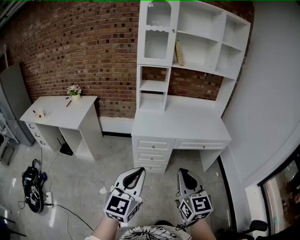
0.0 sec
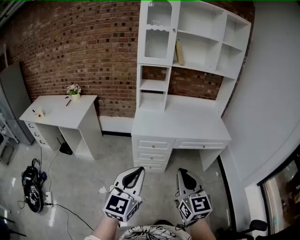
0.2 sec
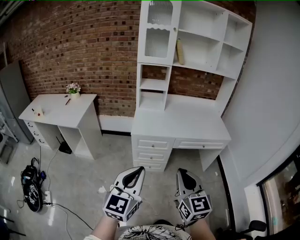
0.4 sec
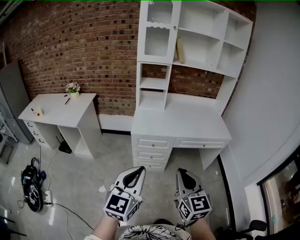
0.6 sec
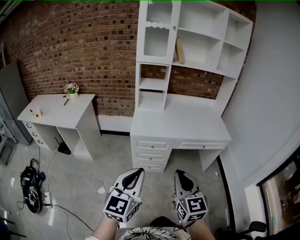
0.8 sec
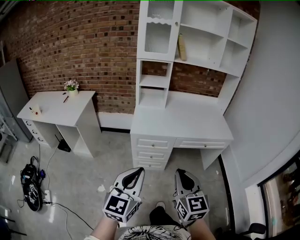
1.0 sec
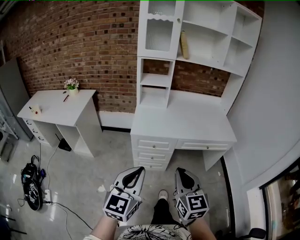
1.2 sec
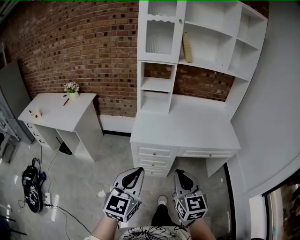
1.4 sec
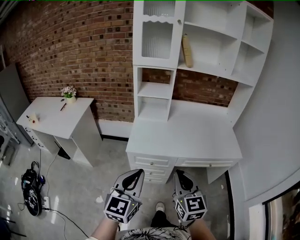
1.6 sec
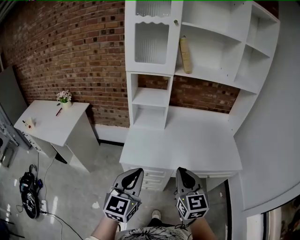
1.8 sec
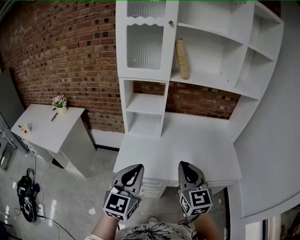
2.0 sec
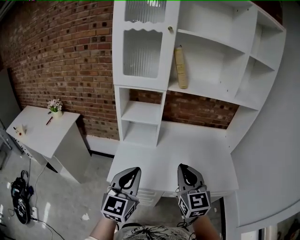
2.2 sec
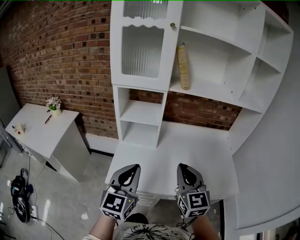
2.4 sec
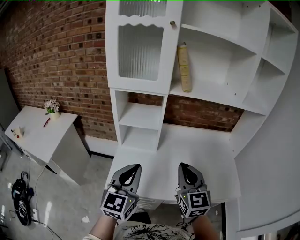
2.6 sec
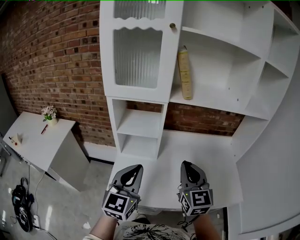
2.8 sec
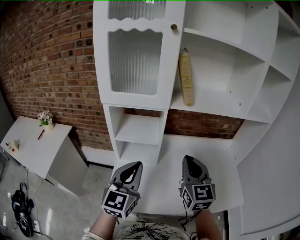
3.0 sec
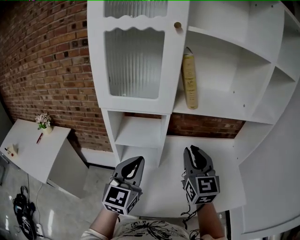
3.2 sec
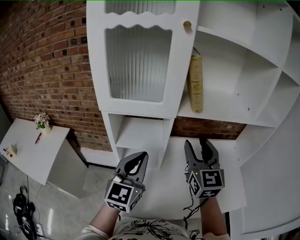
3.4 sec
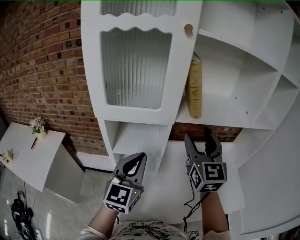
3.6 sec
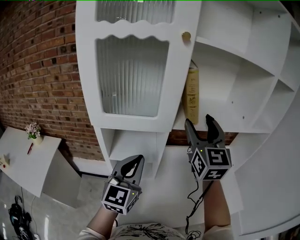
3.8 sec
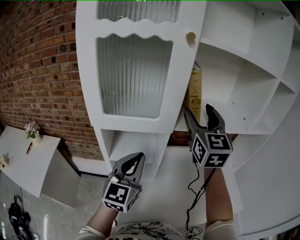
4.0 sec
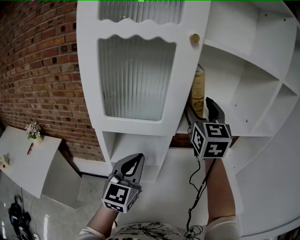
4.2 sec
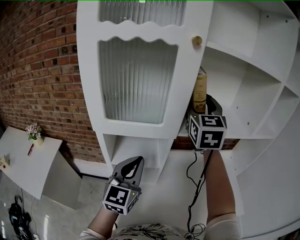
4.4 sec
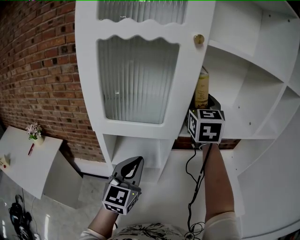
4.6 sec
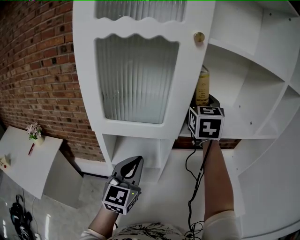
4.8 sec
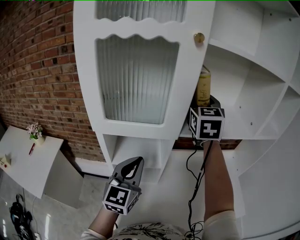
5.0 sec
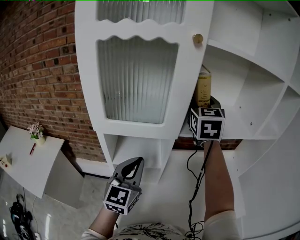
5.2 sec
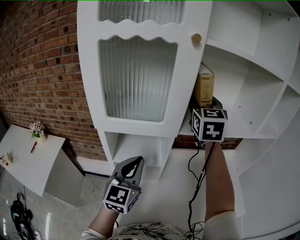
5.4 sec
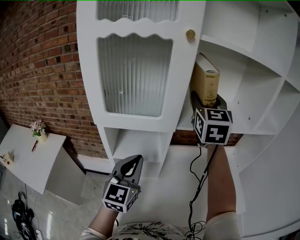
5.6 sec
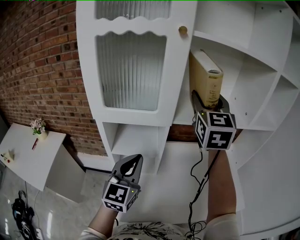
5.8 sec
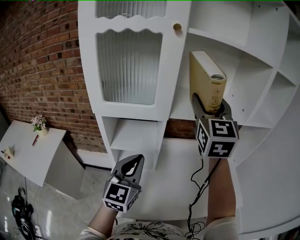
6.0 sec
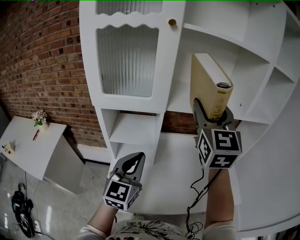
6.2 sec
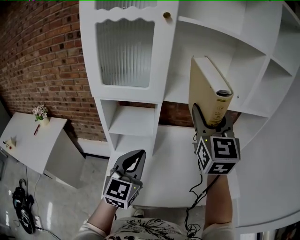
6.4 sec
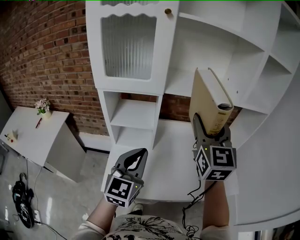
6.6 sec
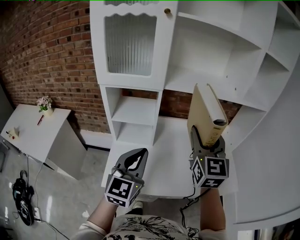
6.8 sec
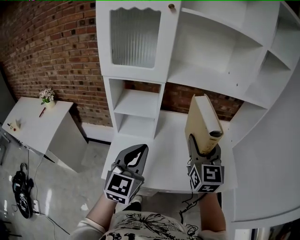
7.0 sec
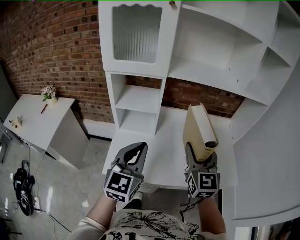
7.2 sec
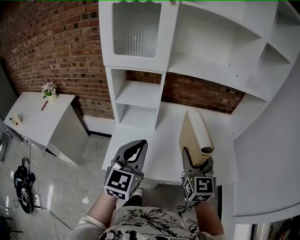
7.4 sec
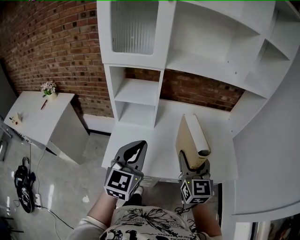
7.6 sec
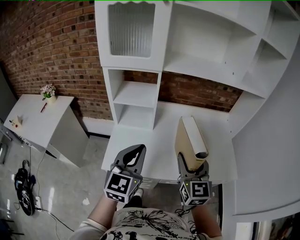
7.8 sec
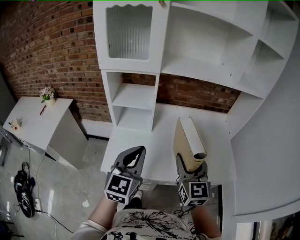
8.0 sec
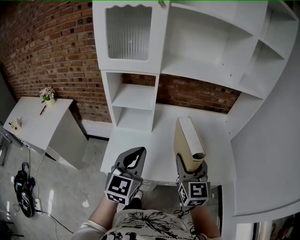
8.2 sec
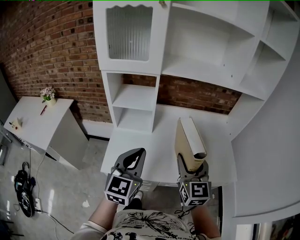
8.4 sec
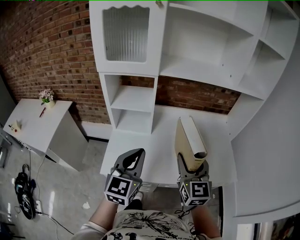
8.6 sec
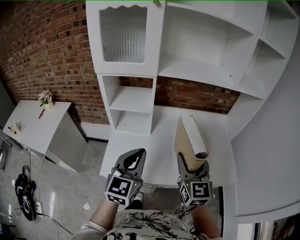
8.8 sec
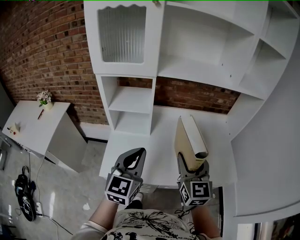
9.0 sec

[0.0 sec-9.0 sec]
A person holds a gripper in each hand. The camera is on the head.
0.0 sec to 1.6 sec: Both grippers move forward, roughly 25 cm.
1.6 sec to 3.0 sec: The pair of grippers is taken forward, roughly 50 cm.
3.0 sec to 4.4 sec: The left gripper moves forward, some 15 cm. The right gripper goes about 35 cm forward and upward, and opens up.
4.4 sec to 6.0 sec: The right gripper heads backward and to the right, covering about 10 cm. Meanwhile the left gripper heads backward, covering about 5 cm.
6.0 sec to 7.6 sec: The left gripper heads backward, covering roughly 20 cm, while the right gripper travels backward and downward by about 40 cm.
7.6 sec to 9.0 sec: There are only small adjustments of the grippers.

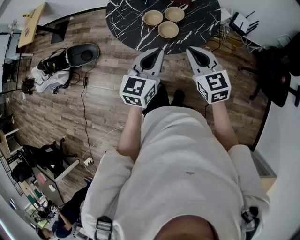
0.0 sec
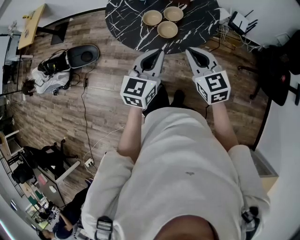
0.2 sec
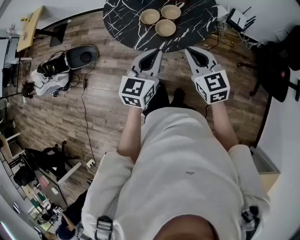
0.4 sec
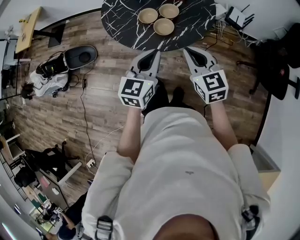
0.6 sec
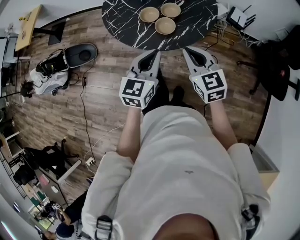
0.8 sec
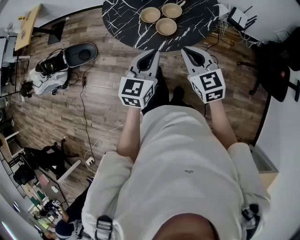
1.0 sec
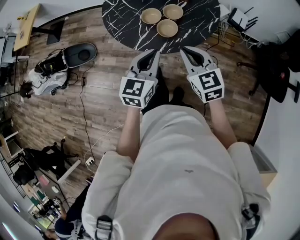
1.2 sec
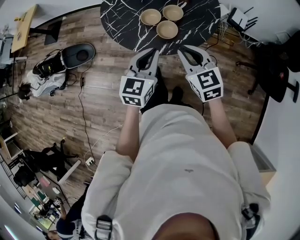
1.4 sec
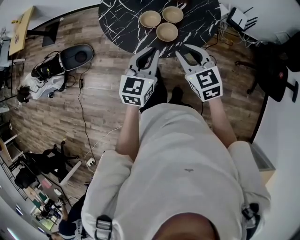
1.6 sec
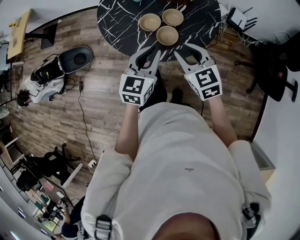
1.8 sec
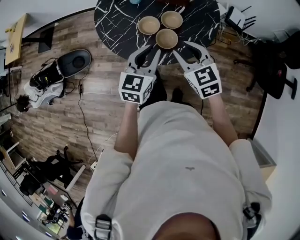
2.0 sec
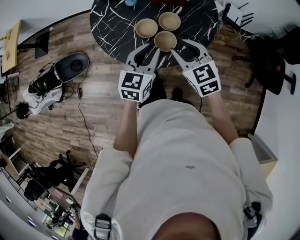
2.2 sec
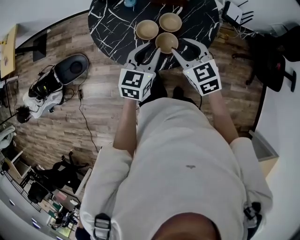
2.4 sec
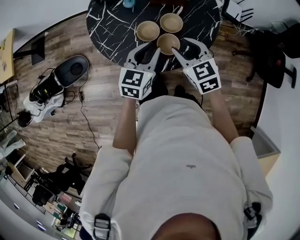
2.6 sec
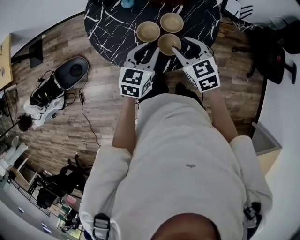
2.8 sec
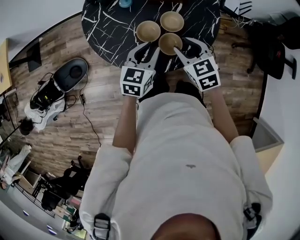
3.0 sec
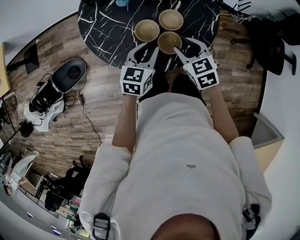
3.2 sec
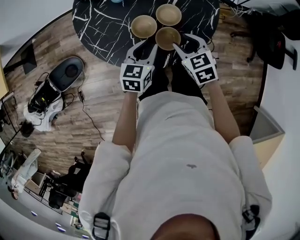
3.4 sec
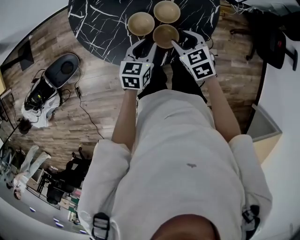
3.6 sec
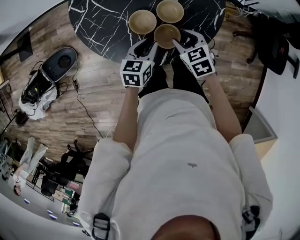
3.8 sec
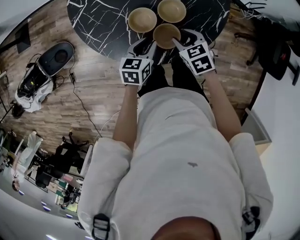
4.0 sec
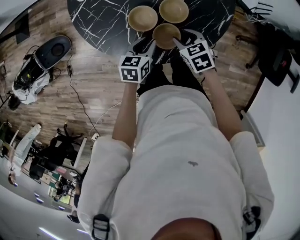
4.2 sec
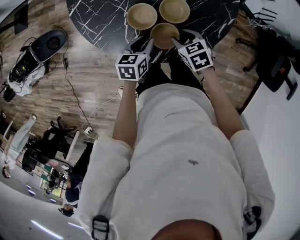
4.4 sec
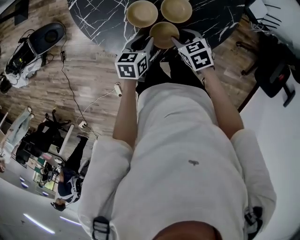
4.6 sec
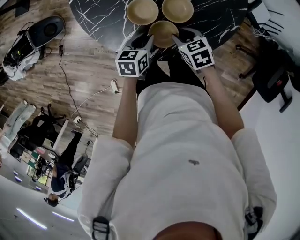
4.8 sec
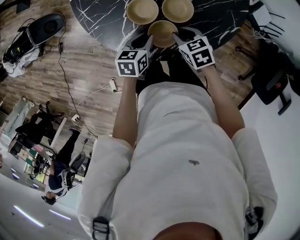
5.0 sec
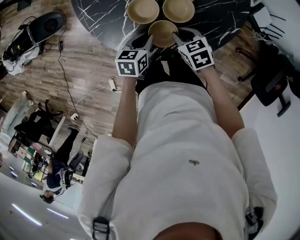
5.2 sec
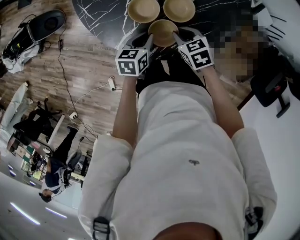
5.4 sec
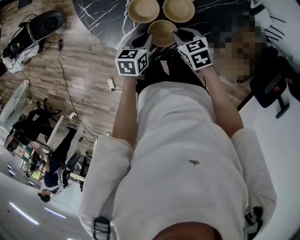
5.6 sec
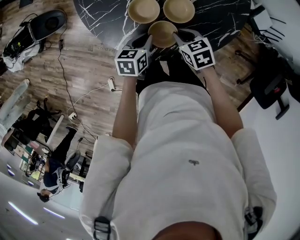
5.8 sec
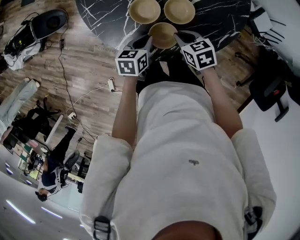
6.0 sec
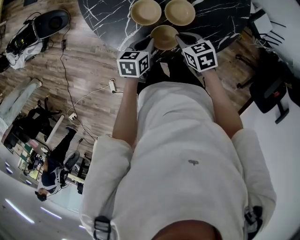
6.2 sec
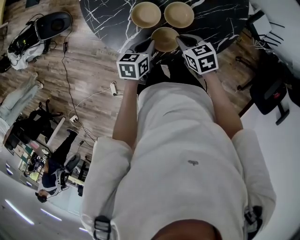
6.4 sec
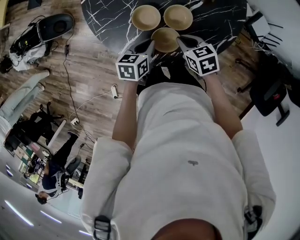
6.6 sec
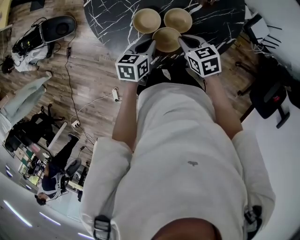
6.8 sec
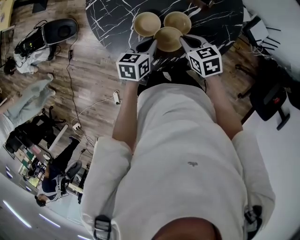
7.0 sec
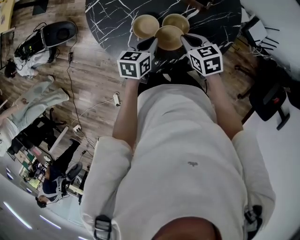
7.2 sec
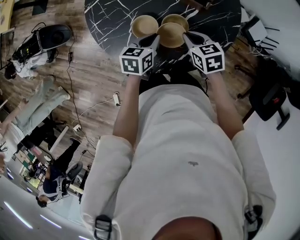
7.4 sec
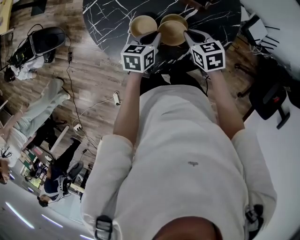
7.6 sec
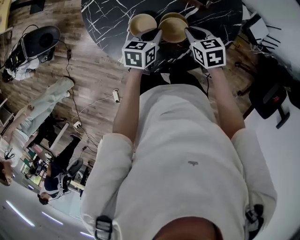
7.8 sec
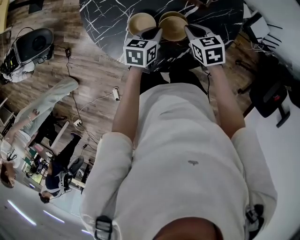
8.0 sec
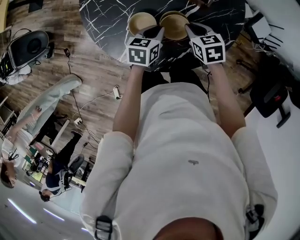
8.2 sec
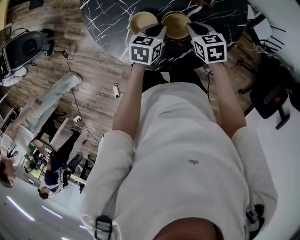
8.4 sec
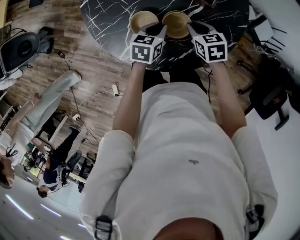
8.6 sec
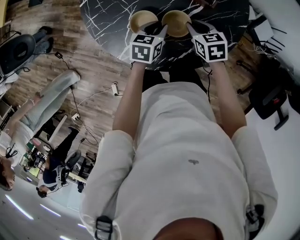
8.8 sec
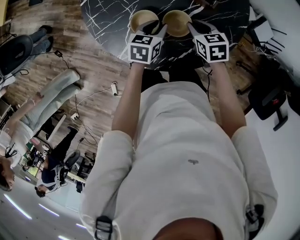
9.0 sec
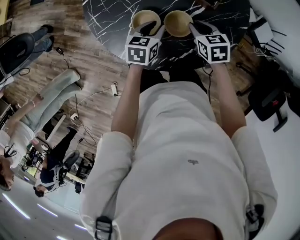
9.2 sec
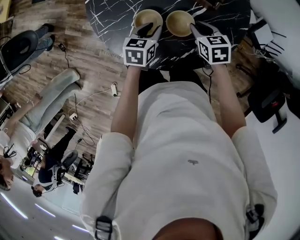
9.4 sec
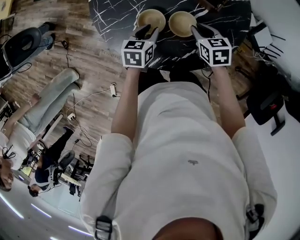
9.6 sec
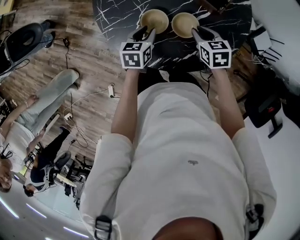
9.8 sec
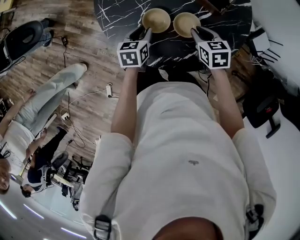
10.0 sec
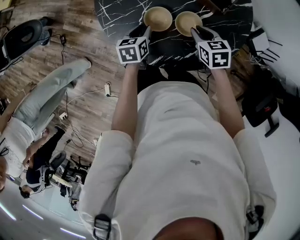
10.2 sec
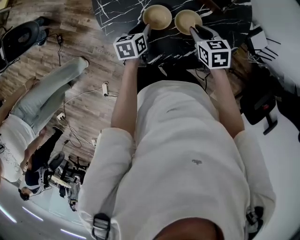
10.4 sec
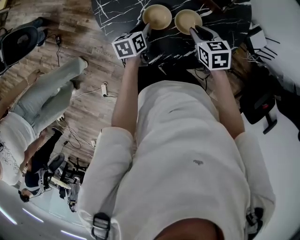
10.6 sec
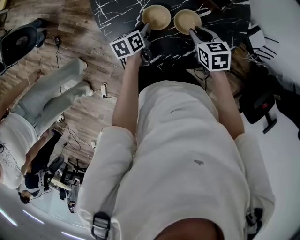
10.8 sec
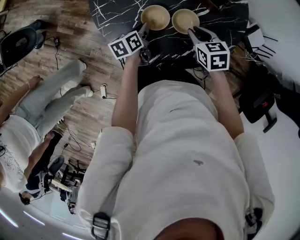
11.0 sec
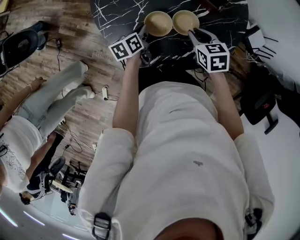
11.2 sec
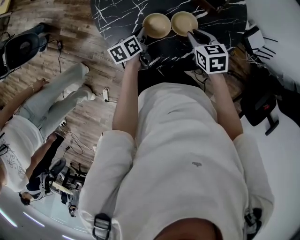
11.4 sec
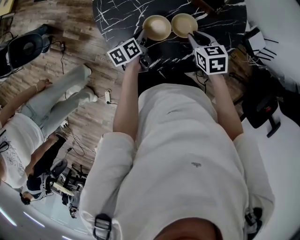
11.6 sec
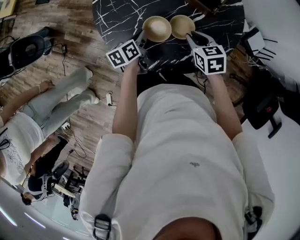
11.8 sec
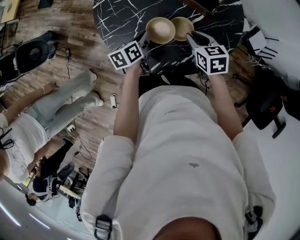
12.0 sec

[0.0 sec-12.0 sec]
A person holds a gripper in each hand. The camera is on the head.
0.0 sec to 1.6 sec: The right gripper moves about 5 cm, and opens. The left gripper heads forward, covering roughly 5 cm.
1.6 sec to 3.0 sec: The two grippers go approximately 15 cm forward and downward. The left gripper opens its fingers.
3.0 sec to 4.4 sec: The two grippers go some 15 cm downward. The right gripper turns by approximately 30 degrees. Meanwhile the left gripper changes its angle by some 30 degrees.
4.4 sec to 6.0 sec: The right gripper closes.
6.0 sec to 7.6 sec: Both grippers travel together forward, upward and to the right, roughly 10 cm.
7.6 sec to 9.0 sec: The grippers move only a little.
9.0 sec to 10.4 sec: The right gripper ends up approximately 5 cm from where it was. The left gripper shifts roughly 10 cm to the left, and changes its angle by roughly 20 degrees.
10.4 sec to 12.0 sec: The left gripper is displaced upward by approximately 5 cm, and closes.

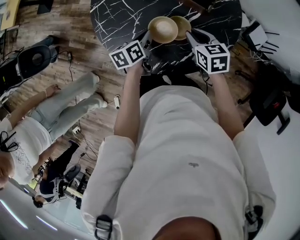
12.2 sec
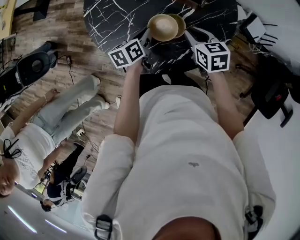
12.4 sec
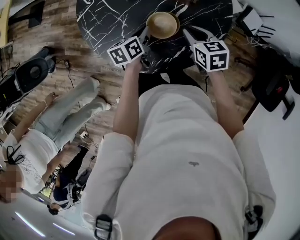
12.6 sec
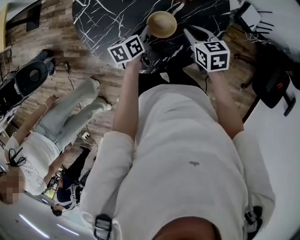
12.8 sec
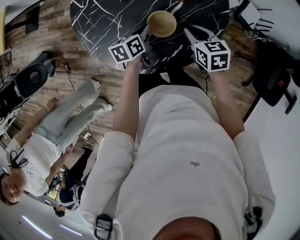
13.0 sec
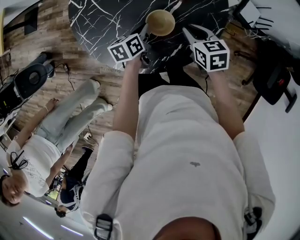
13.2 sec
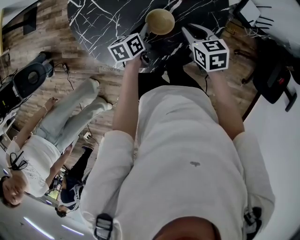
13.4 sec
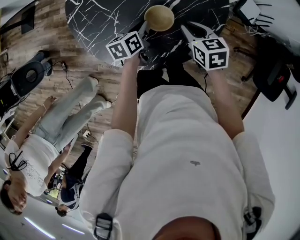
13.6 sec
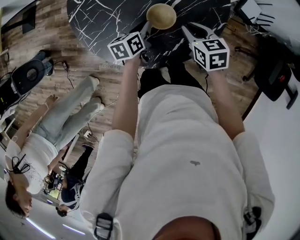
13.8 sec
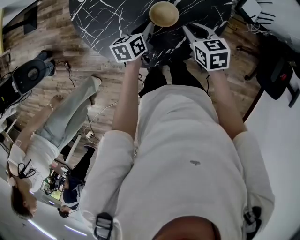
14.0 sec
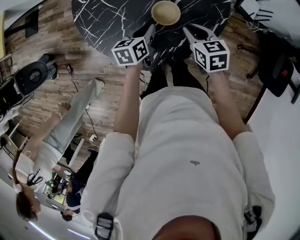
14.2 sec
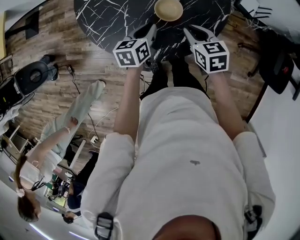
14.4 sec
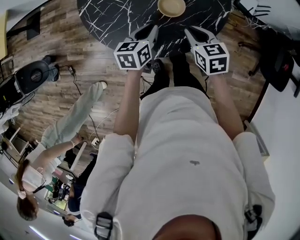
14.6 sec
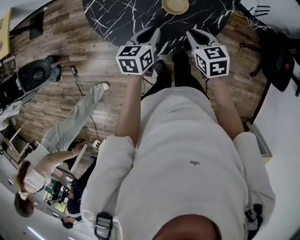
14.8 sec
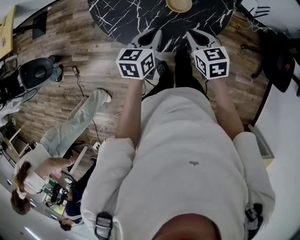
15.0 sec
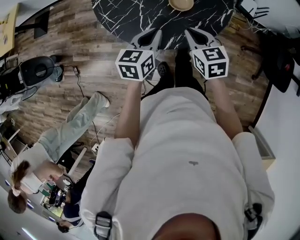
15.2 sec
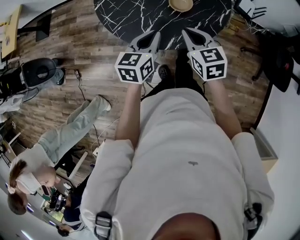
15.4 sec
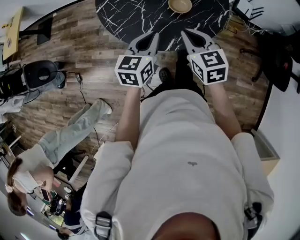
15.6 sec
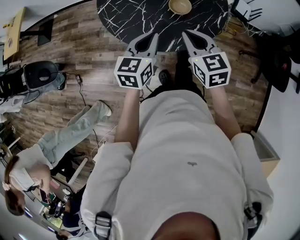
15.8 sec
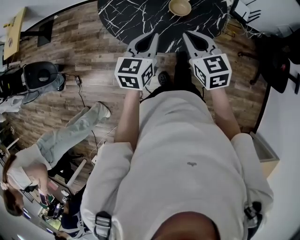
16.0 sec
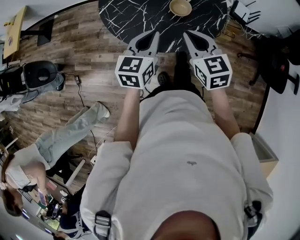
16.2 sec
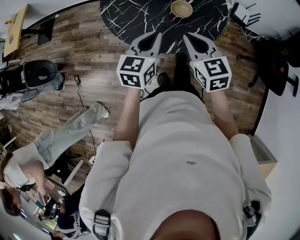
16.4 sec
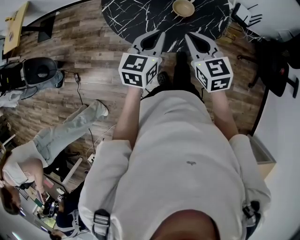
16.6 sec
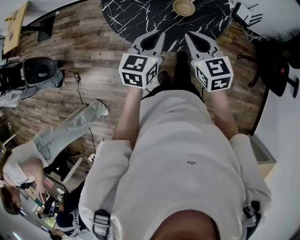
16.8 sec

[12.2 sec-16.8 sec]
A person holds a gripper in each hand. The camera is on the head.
12.2 sec to 13.8 sec: The right gripper shifts by roughly 5 cm. Meanwhile the left gripper goes about 5 cm to the right.
13.8 sec to 15.2 sec: The right gripper shifts roughly 20 cm backward, to the left and upward, while the left gripper moves backward and upward, roughly 20 cm, and turns by roughly 30 degrees.
15.2 sec to 16.8 sec: Both grippers move upward, approximately 10 cm.
